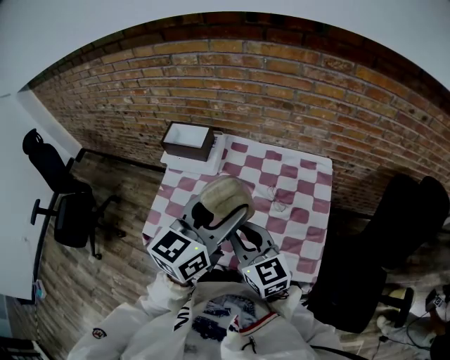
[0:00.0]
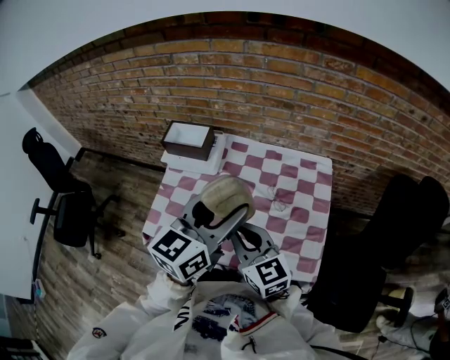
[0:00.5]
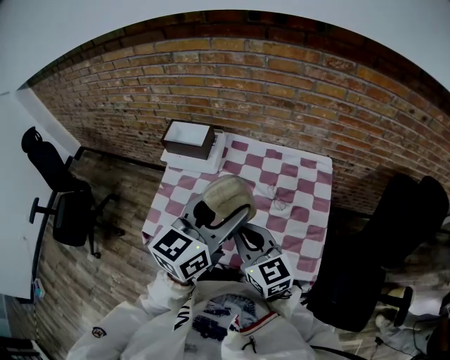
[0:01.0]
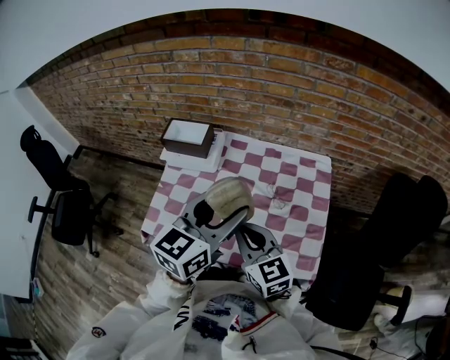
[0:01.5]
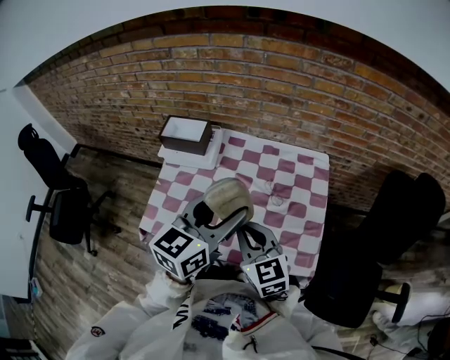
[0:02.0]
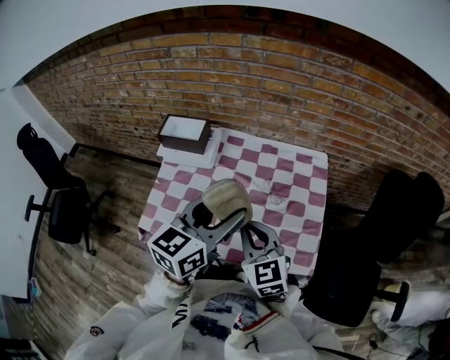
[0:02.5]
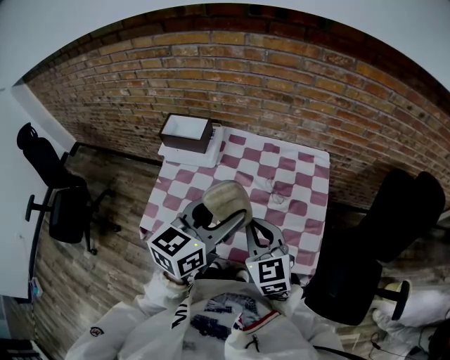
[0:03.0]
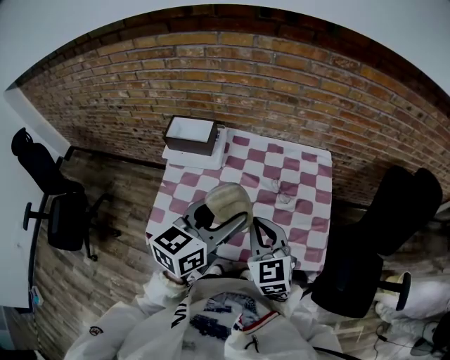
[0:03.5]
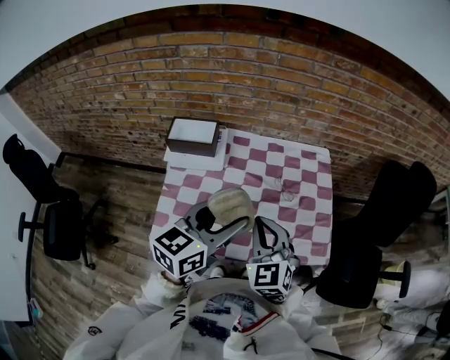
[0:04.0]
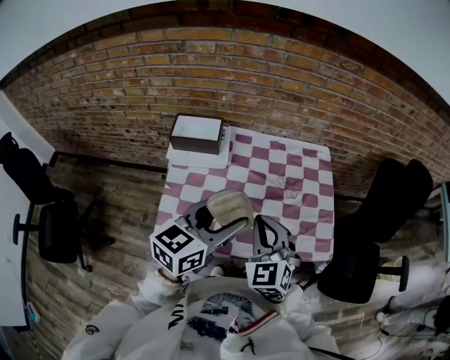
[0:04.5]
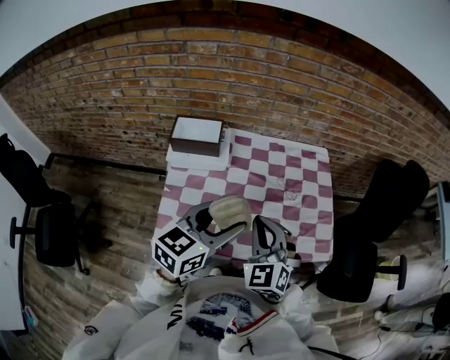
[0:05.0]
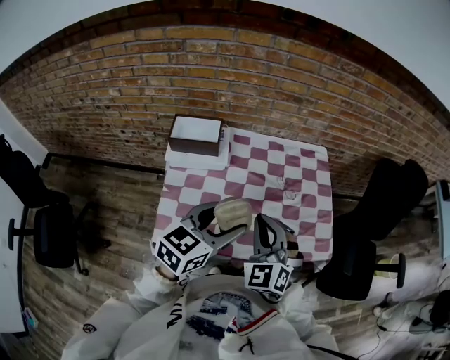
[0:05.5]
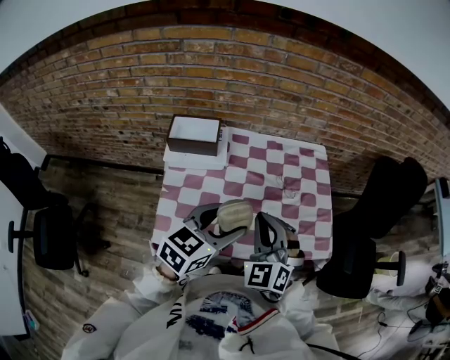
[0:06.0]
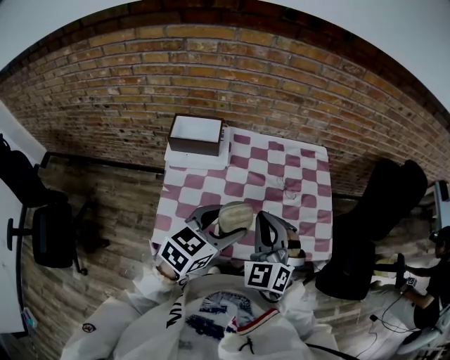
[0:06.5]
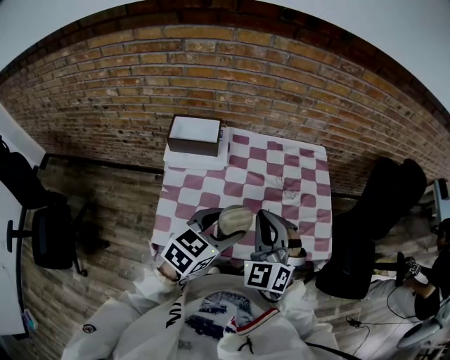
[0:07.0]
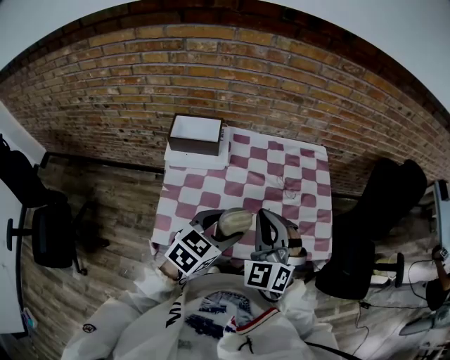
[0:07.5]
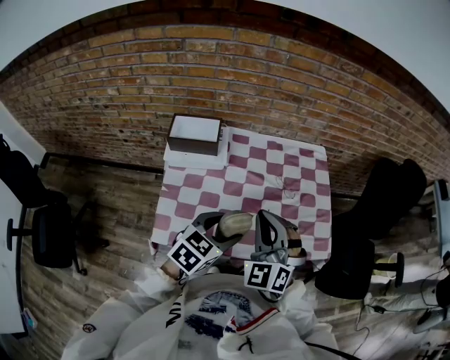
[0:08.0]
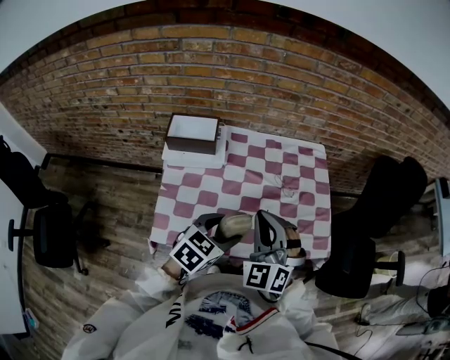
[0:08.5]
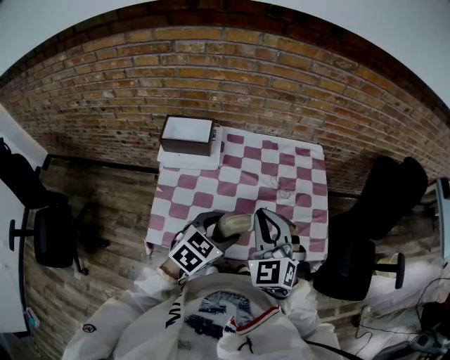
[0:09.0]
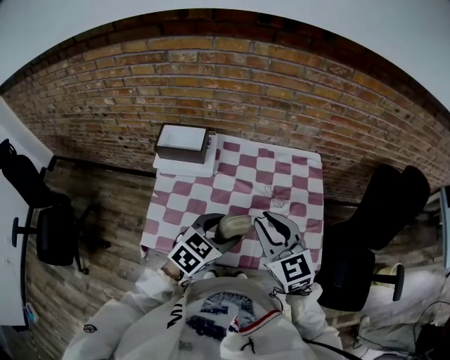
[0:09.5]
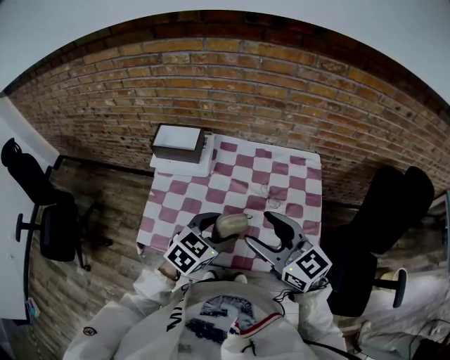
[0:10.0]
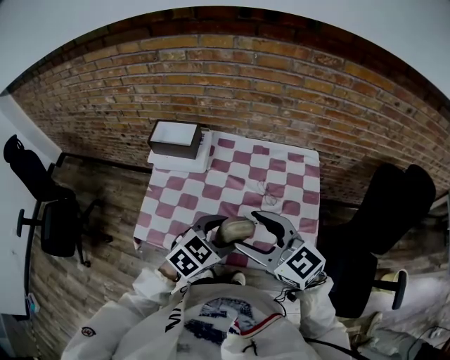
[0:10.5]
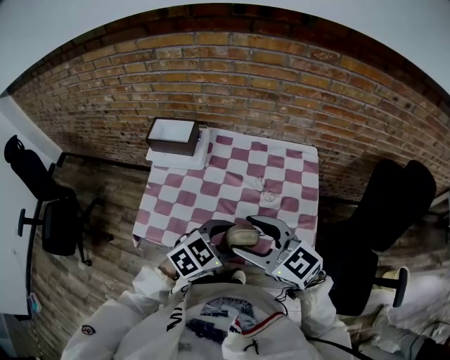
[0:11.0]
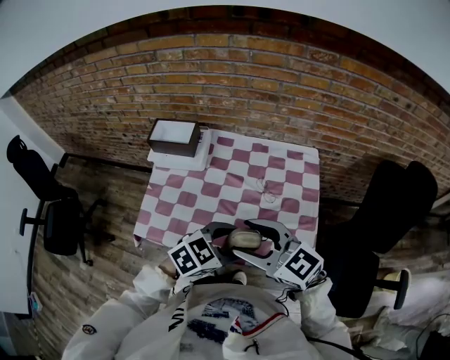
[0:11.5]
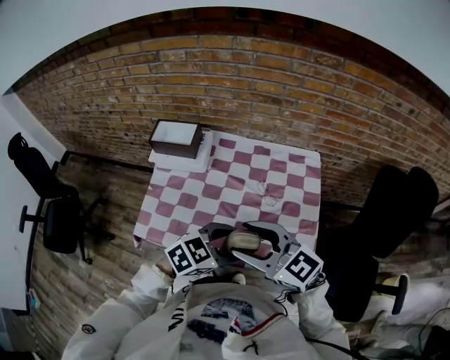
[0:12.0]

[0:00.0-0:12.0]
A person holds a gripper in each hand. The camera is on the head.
0:00.0 to 0:02.0: The grippers make only small movements.
0:02.0 to 0:04.0: The right gripper shifts approximately 5 cm to the left, and changes its angle by roughly 30 degrees, while the left gripper travels to the left by roughly 10 cm.
0:04.0 to 0:06.0: The left gripper heads downward, covering about 5 cm.
0:06.0 to 0:08.0: The left gripper moves downward, about 5 cm.
0:08.0 to 0:10.0: The left gripper shifts by approximately 10 cm, while the right gripper moves approximately 10 cm, changes its angle by some 60 degrees, and opens.
0:10.0 to 0:12.0: The left gripper shifts by roughly 10 cm.

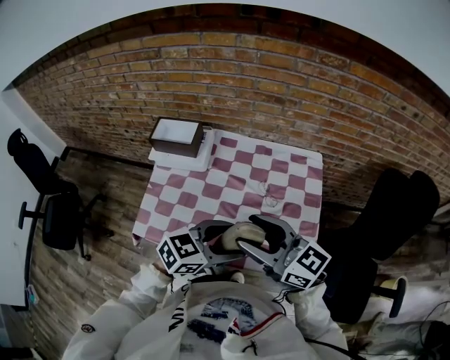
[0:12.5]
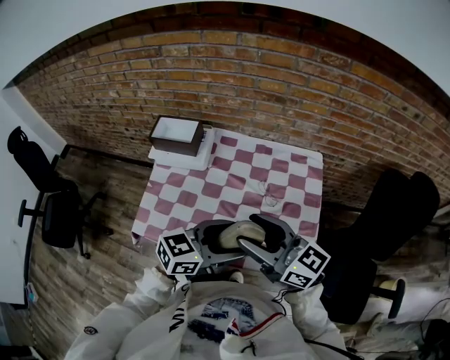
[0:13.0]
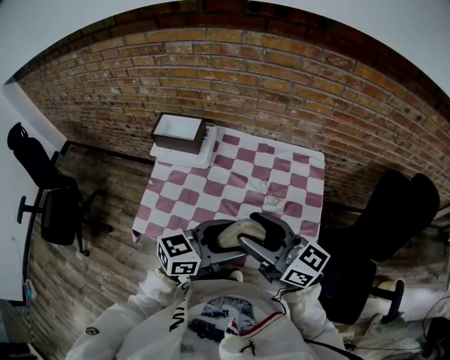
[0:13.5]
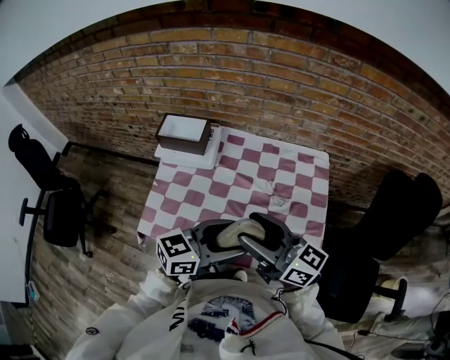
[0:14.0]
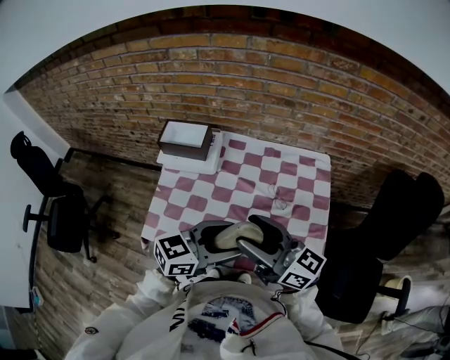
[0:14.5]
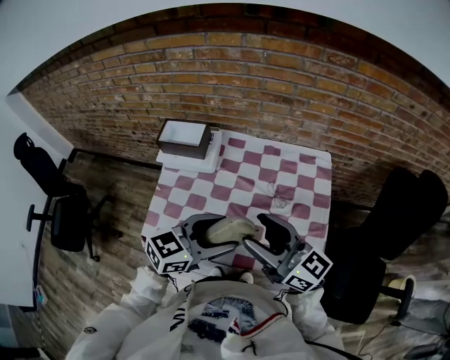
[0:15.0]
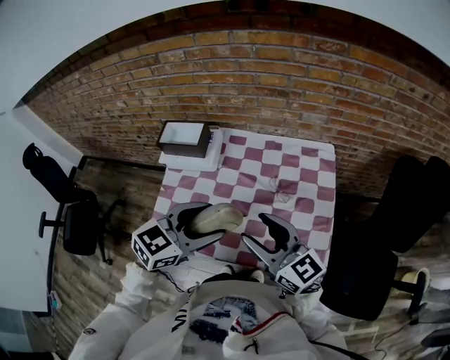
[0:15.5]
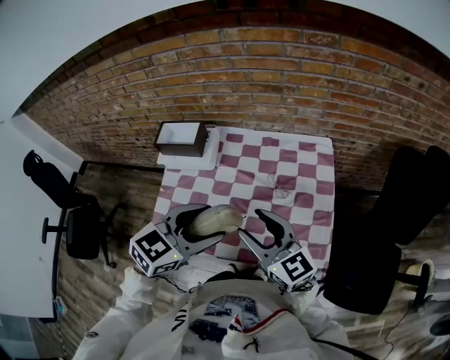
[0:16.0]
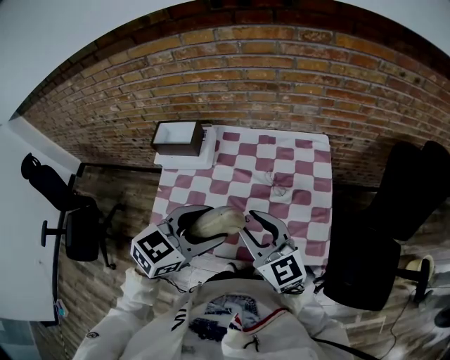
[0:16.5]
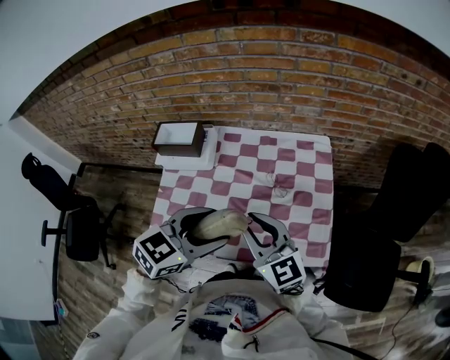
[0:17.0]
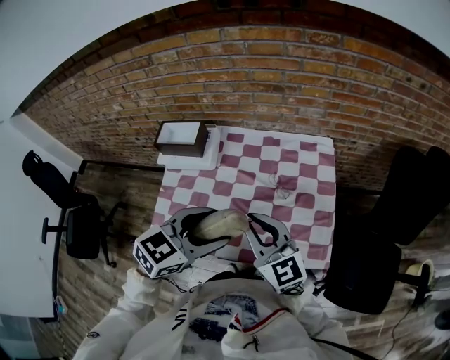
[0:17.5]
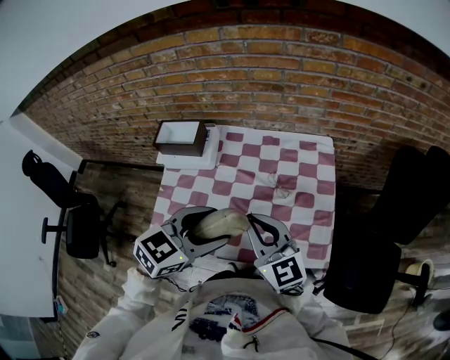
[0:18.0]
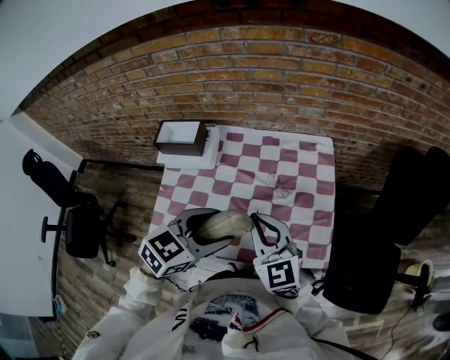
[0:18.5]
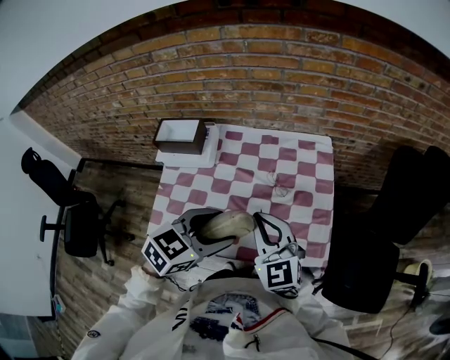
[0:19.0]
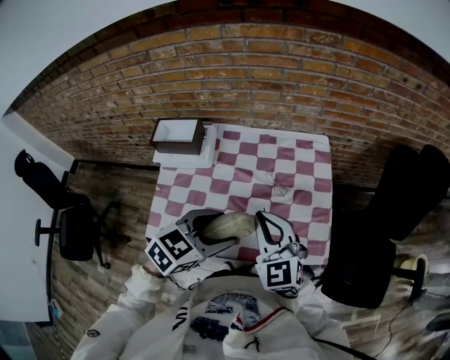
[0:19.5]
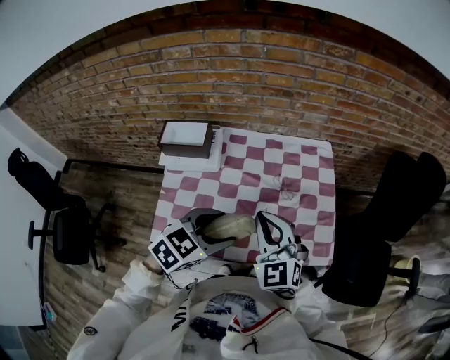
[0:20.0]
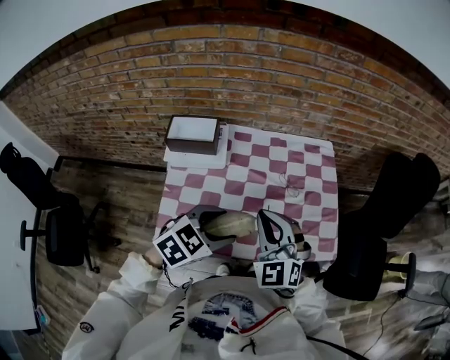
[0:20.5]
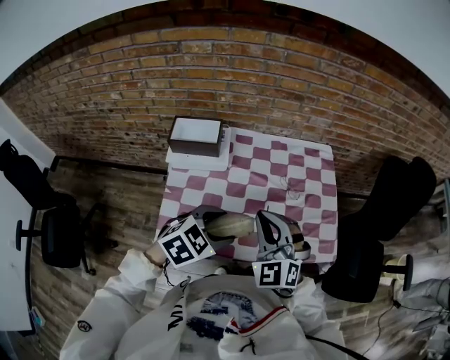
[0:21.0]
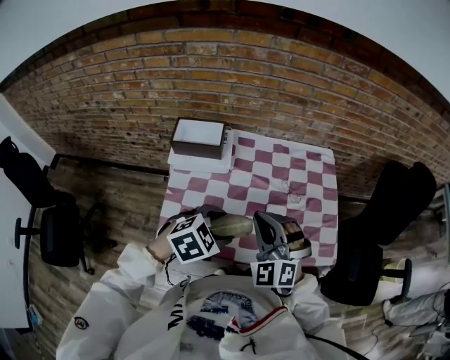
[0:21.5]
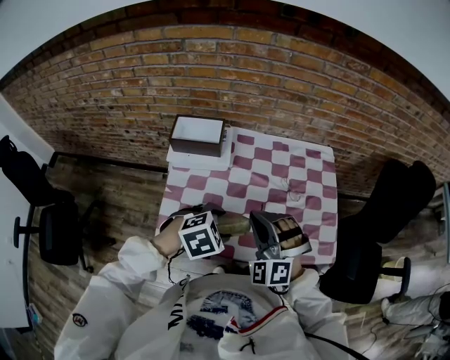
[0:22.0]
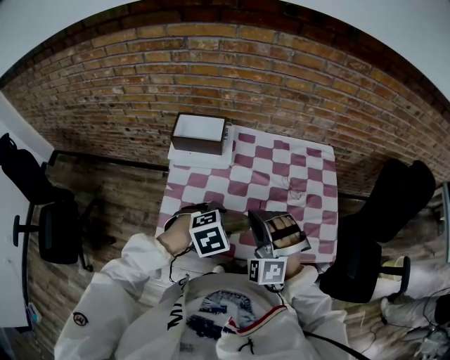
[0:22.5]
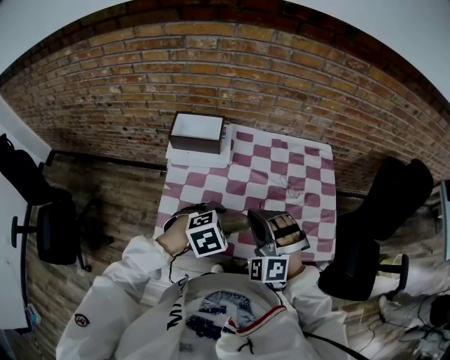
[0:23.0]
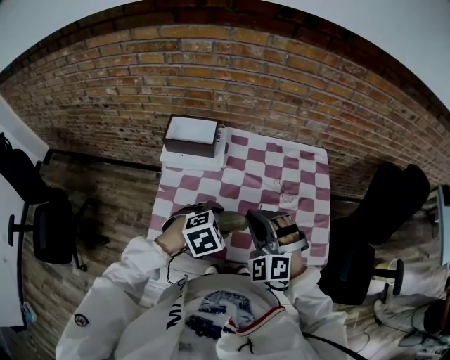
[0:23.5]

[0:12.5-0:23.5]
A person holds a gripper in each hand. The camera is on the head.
0:12.5 to 0:14.5: The left gripper ends up some 5 cm from where it was.
0:14.5 to 0:16.0: The right gripper ends up approximately 5 cm from where it was, and rotates about 30 degrees. The left gripper rotates some 30 degrees.
0:16.0 to 0:18.0: The right gripper closes up.
0:18.0 to 0:20.0: The left gripper shifts about 5 cm to the left; the right gripper changes its angle by some 30 degrees.
0:20.0 to 0:21.5: The right gripper is displaced to the left by some 10 cm, and rotates approximately 30 degrees. Meanwhile the left gripper travels to the left and downward by approximately 10 cm.
0:21.5 to 0:23.5: The left gripper ends up roughly 5 cm from where it was.

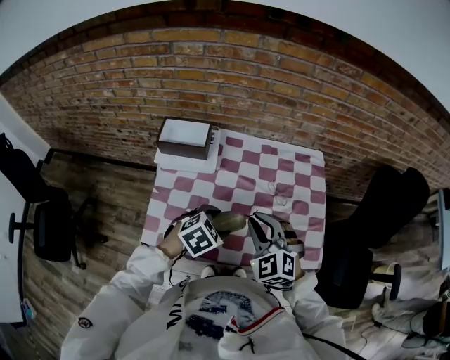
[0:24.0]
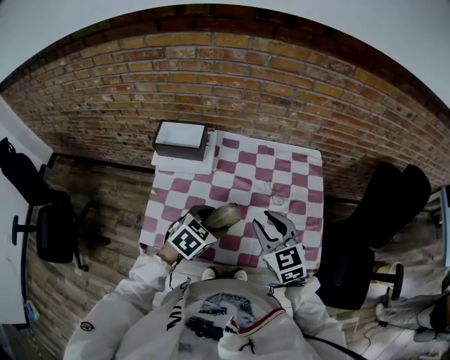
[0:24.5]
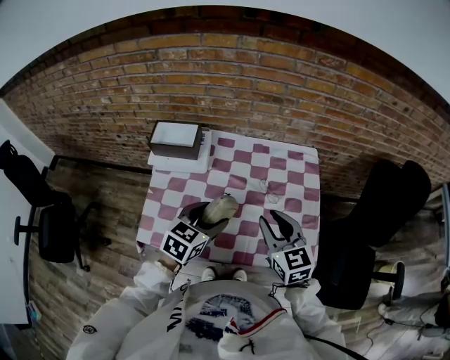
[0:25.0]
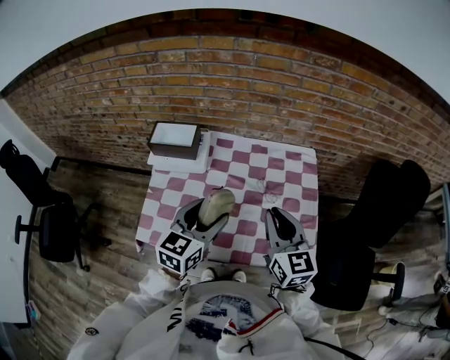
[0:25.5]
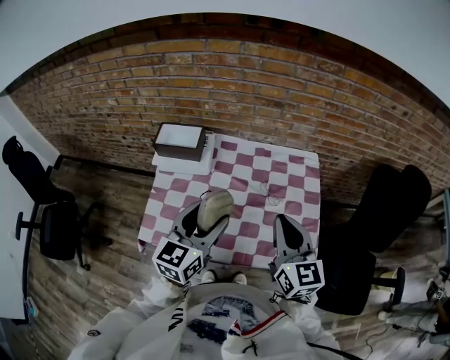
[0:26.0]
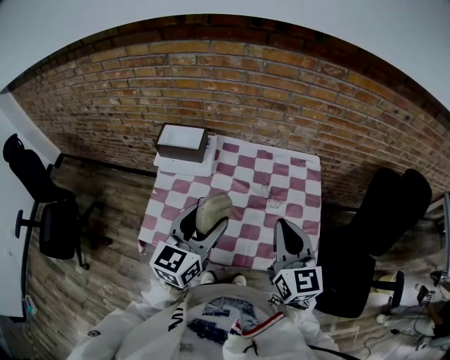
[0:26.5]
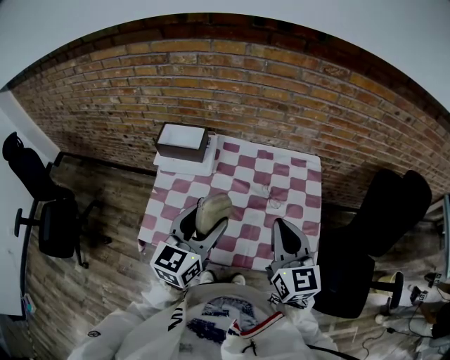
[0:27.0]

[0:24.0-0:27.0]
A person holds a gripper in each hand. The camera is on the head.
0:24.0 to 0:25.5: The right gripper heads to the right and upward, covering approximately 15 cm, and twists about 50 degrees clockwise, seen from behind. Meanwhile the left gripper moves upward, some 10 cm, and angles its fingers upward, by about 40 degrees.
0:25.5 to 0:27.0: The left gripper changes place by approximately 5 cm.

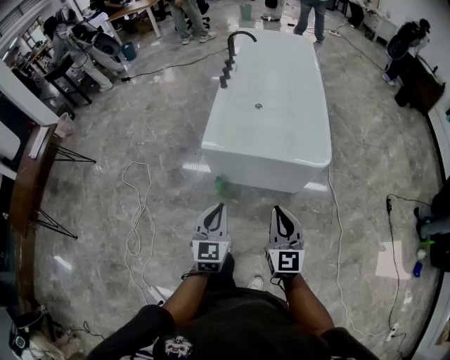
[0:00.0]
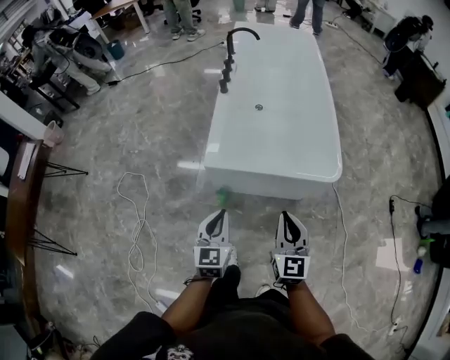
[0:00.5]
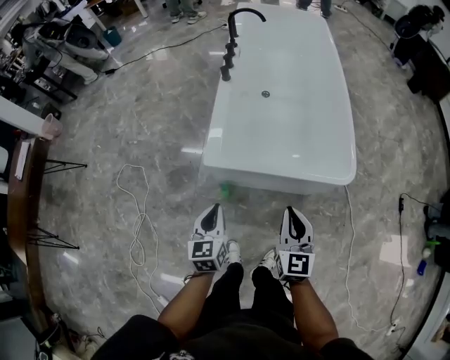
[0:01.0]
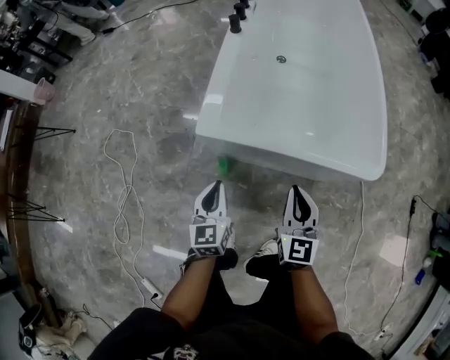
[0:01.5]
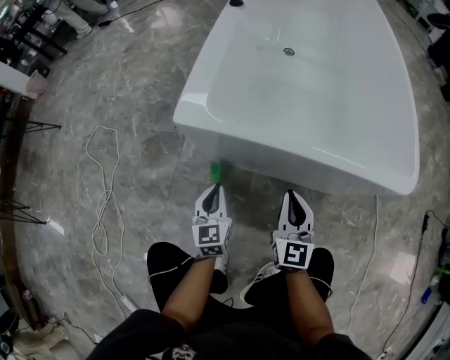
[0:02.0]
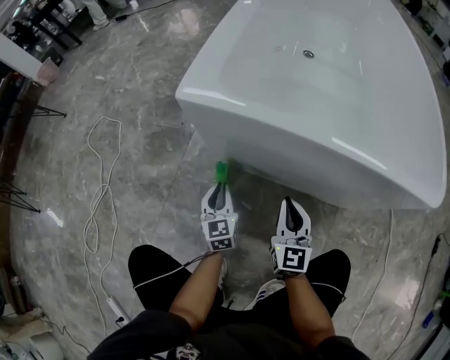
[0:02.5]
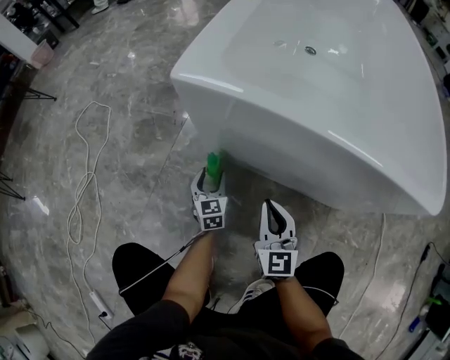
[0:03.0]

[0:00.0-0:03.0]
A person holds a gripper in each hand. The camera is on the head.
0:00.0 to 0:01.5: The left gripper shifts roughly 40 cm downward and forward; the right gripper shifts approximately 40 cm forward and downward.
0:01.5 to 0:03.0: The grippers both shift downward by about 40 cm. The left gripper opens up.
